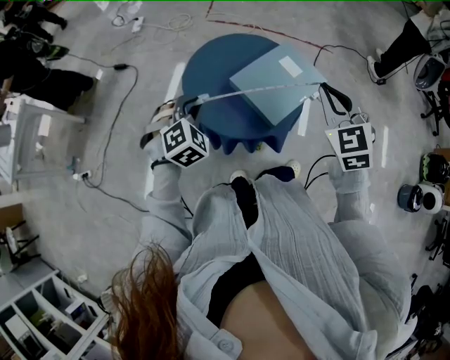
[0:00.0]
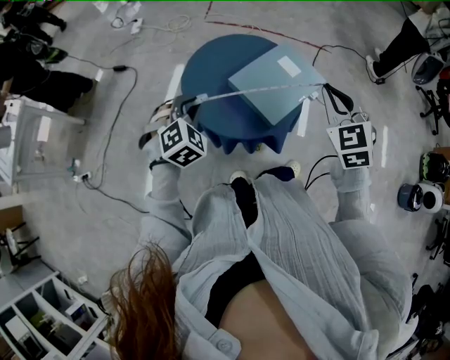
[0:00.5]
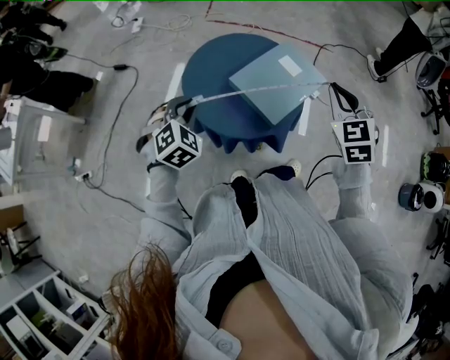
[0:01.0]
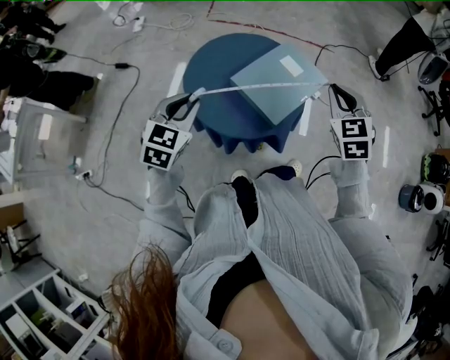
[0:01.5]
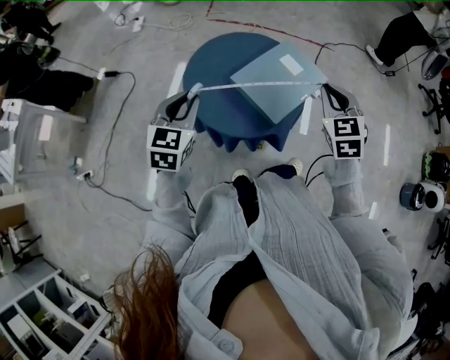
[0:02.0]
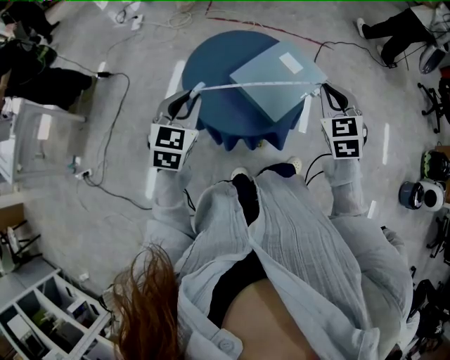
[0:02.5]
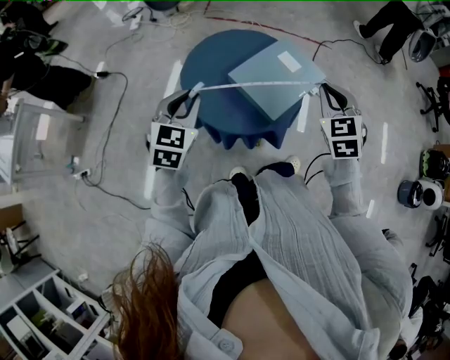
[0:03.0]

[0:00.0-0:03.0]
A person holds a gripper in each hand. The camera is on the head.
0:00.0 to 0:01.5: The right gripper ends up approximately 5 cm from where it was. The left gripper swivels roughly 40 degrees.
0:01.5 to 0:03.0: The grippers move only a little.

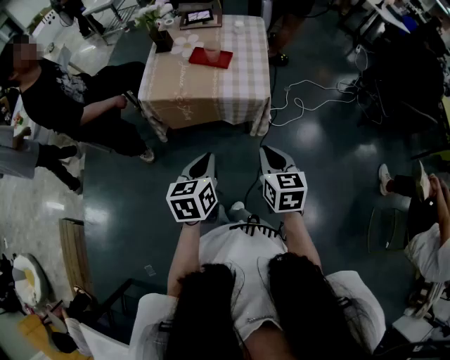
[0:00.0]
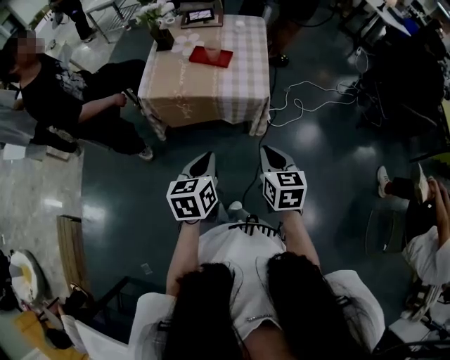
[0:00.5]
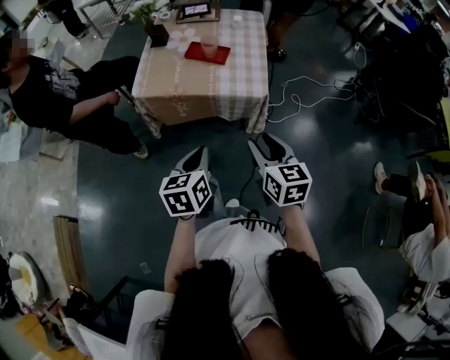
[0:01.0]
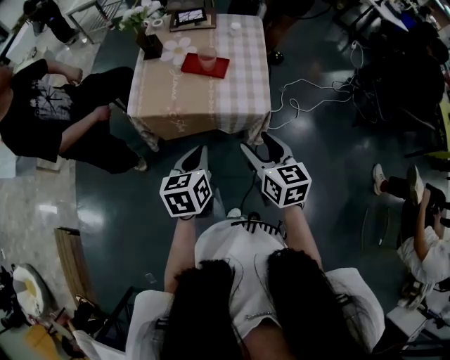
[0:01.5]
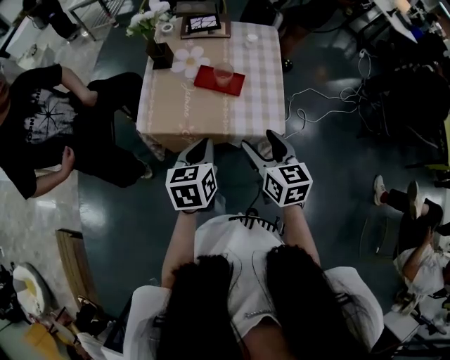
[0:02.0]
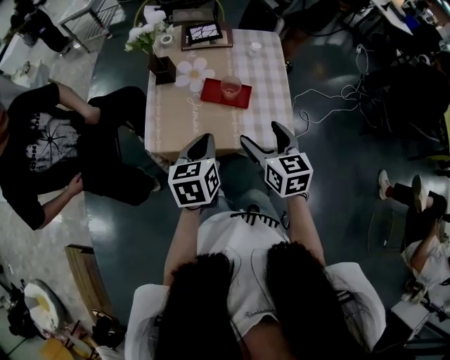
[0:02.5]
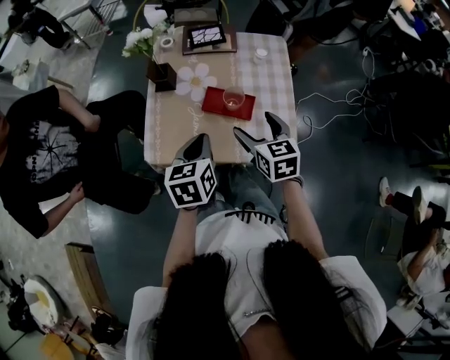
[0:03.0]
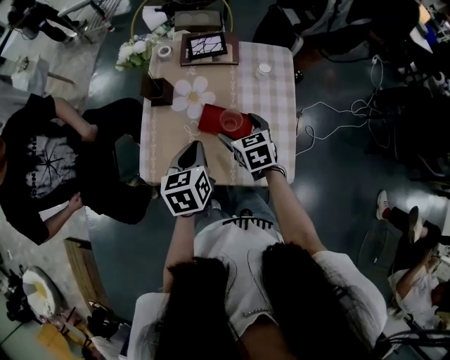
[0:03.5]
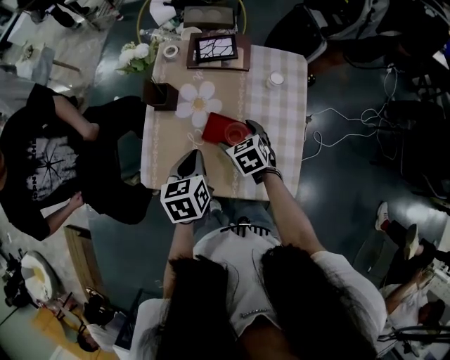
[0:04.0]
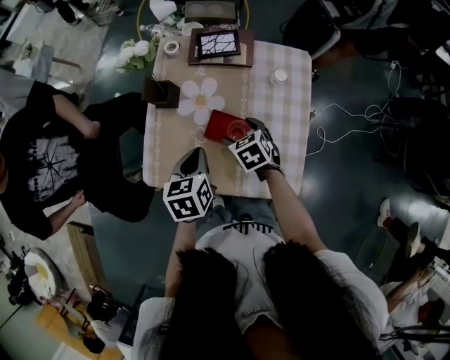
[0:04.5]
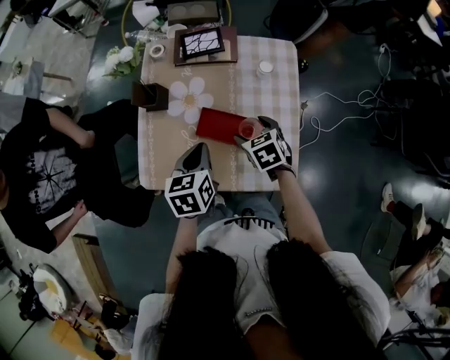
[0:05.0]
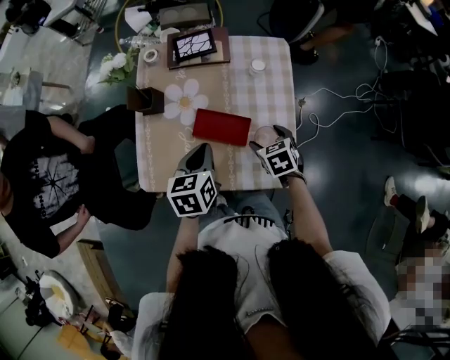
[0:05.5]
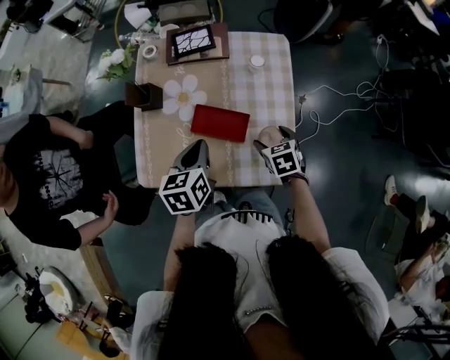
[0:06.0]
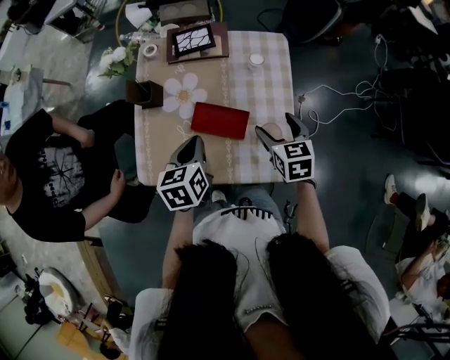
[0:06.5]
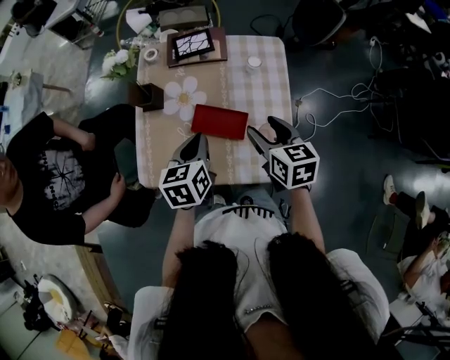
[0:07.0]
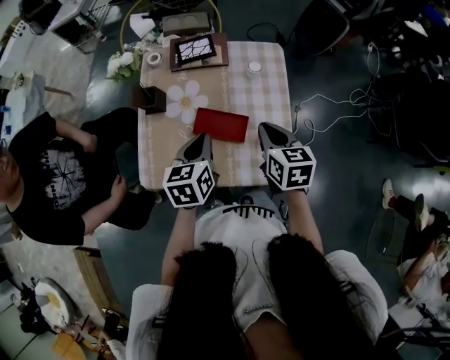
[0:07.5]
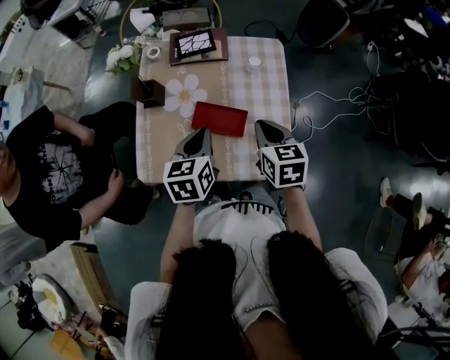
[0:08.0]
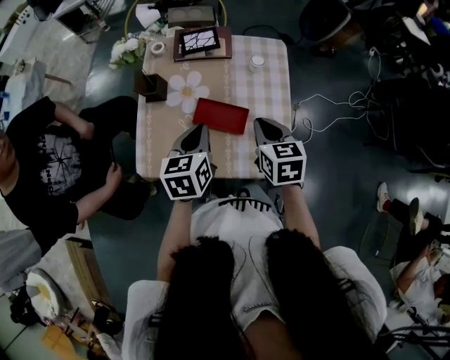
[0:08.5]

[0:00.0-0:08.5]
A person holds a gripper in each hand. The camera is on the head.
0:00.0 to 0:02.0: Both grippers travel together forward, roughly 25 cm. The right gripper opens up.
0:02.0 to 0:04.0: The left gripper travels forward by roughly 25 cm; the right gripper heads forward and downward, covering some 35 cm, and changes its angle by some 40 degrees.
0:04.0 to 0:06.5: The right gripper shifts roughly 15 cm to the right and upward, and changes its angle by roughly 20 degrees.
0:06.5 to 0:08.5: The right gripper is displaced to the left by some 5 cm, and closes its fingers.

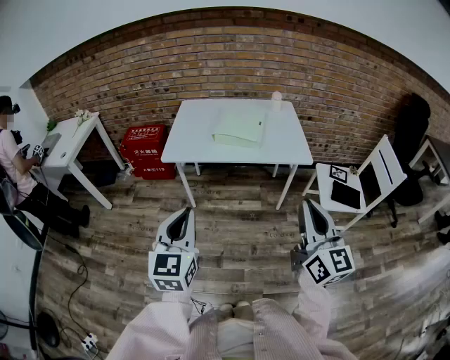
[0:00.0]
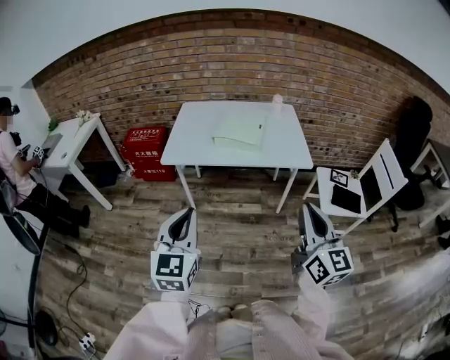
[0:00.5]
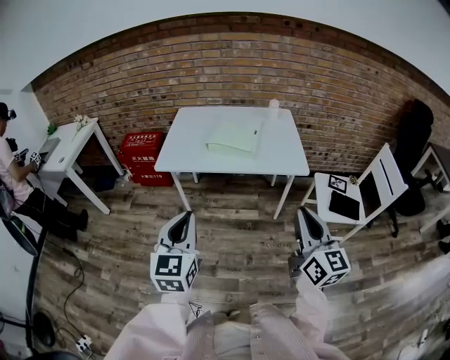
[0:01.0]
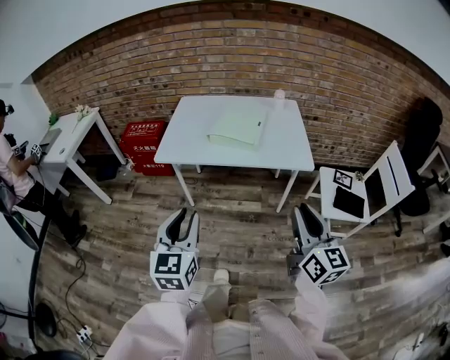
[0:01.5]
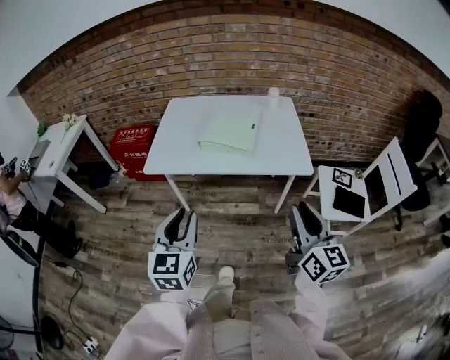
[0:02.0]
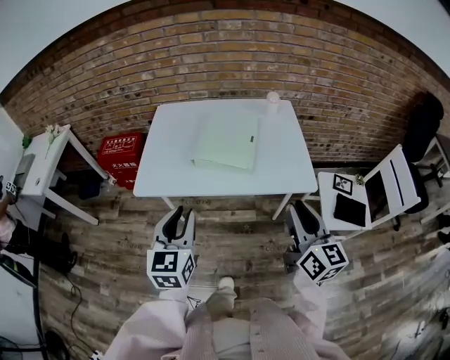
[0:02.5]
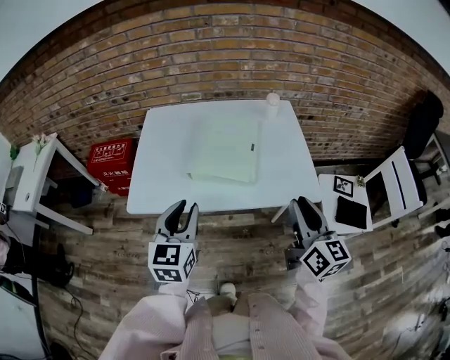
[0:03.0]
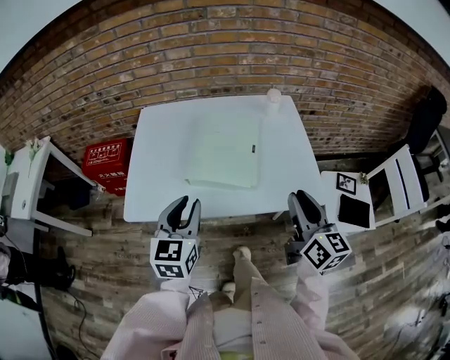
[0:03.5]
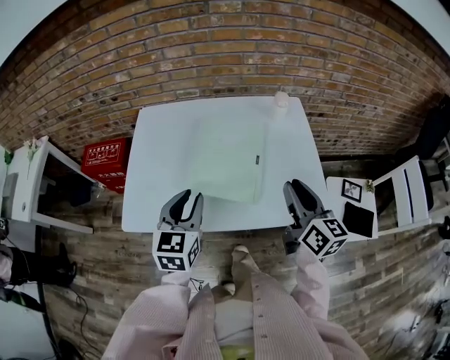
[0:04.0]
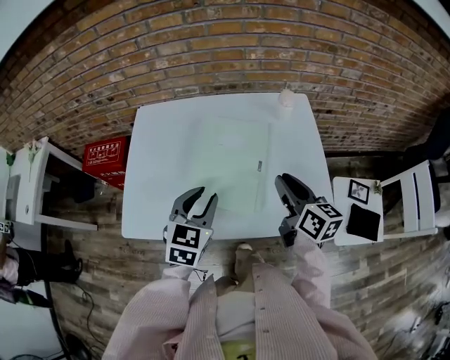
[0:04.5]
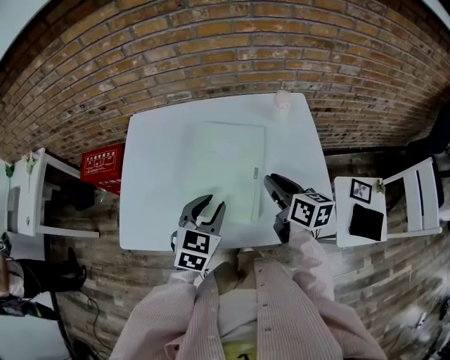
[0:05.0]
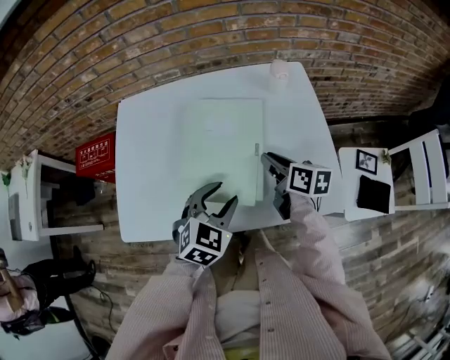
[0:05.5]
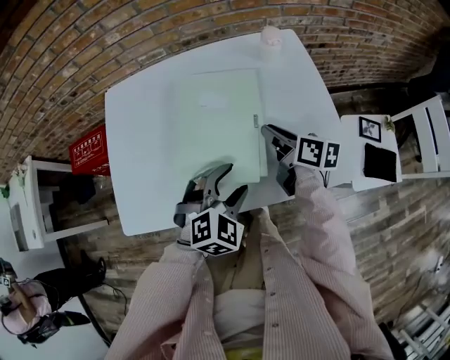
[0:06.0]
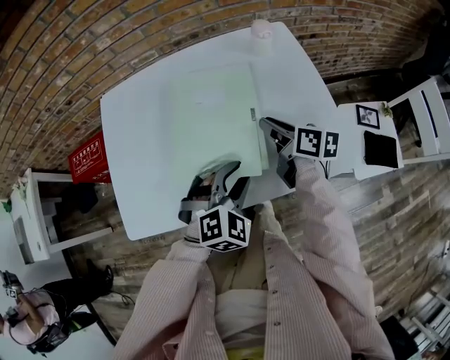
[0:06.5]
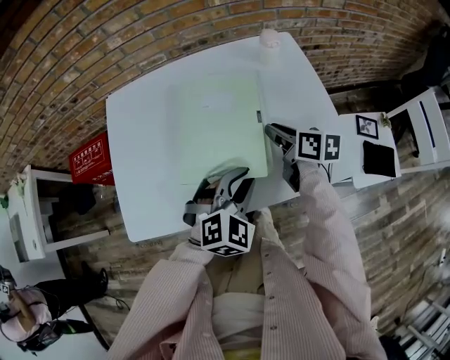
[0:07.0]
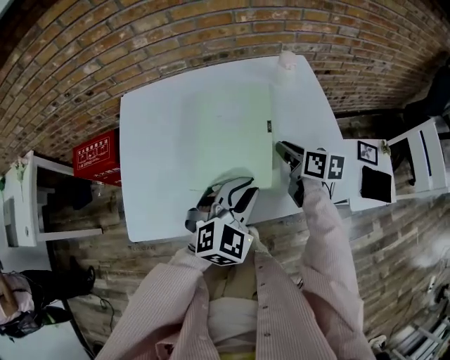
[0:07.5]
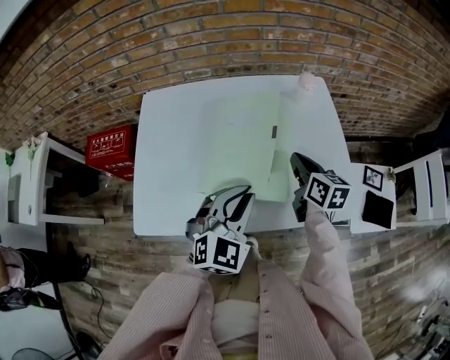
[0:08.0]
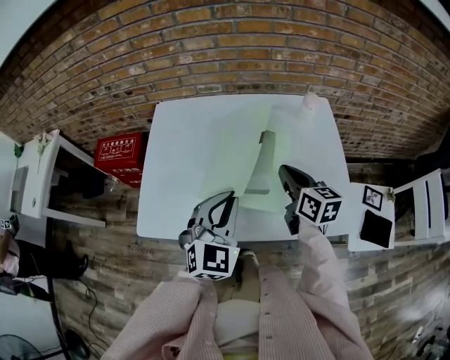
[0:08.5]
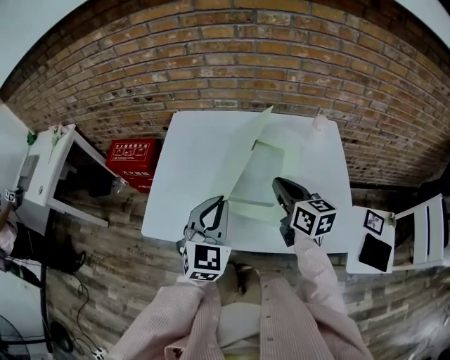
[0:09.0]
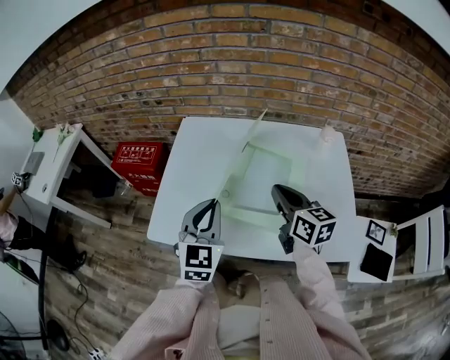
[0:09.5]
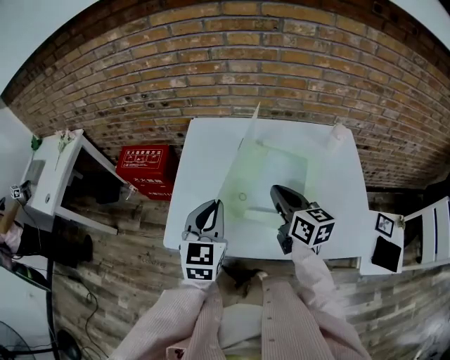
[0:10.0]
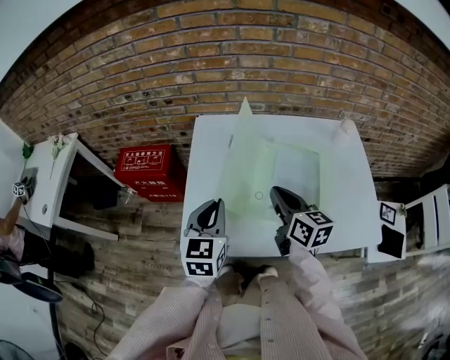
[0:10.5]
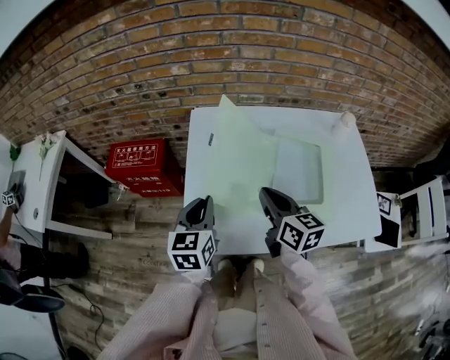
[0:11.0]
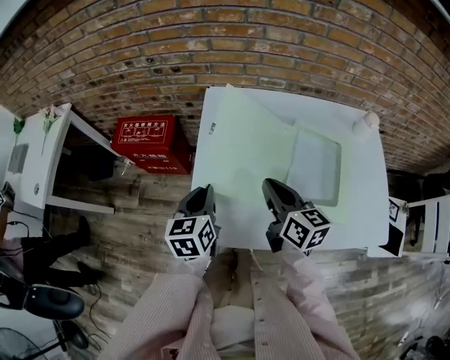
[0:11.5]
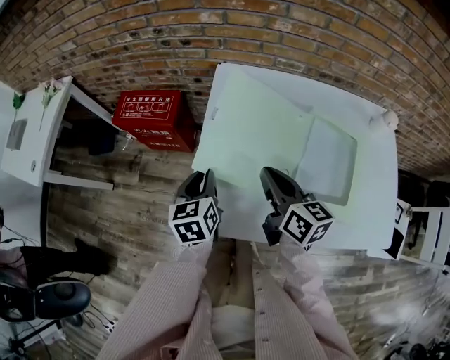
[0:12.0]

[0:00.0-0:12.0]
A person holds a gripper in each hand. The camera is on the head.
0:00.0 to 0:02.0: The left gripper goes some 15 cm forward and to the right, and opens up; the right gripper goes approximately 15 cm forward, downward and to the right.
0:02.0 to 0:04.0: The grippers both shift forward by roughly 35 cm.
0:04.0 to 0:06.0: The left gripper moves to the right and downward, roughly 15 cm, rotates around the line of its fingers by approximately 50 degrees, clockwise from behind, and opens up. Meanwhile the right gripper shifts roughly 20 cm downward and forward, and rotates roughly 30 degrees.
0:06.0 to 0:08.0: The right gripper changes its angle by about 20 degrees, while the left gripper is displaced upward by some 10 cm, rotates some 30 degrees, and closes its fingers.
0:08.0 to 0:10.0: The grippers both shift to the left by approximately 20 cm. The right gripper turns by roughly 20 degrees. The left gripper rotates approximately 40 degrees.
0:10.0 to 0:12.0: The right gripper travels to the left by some 15 cm; the left gripper heads to the left, downward and forward, covering roughly 25 cm, and turns by roughly 30 degrees.

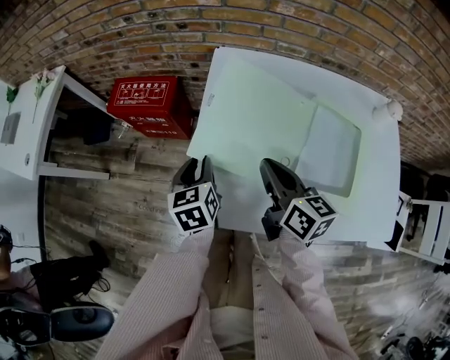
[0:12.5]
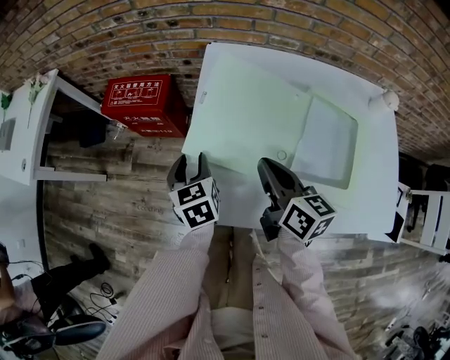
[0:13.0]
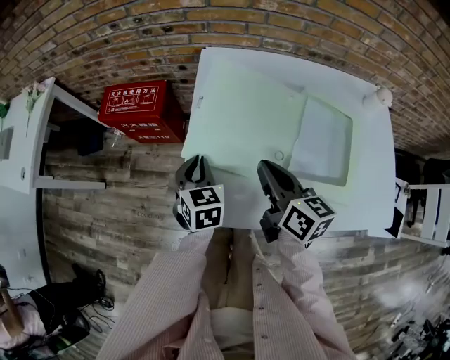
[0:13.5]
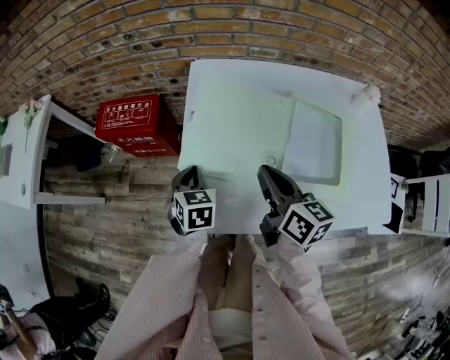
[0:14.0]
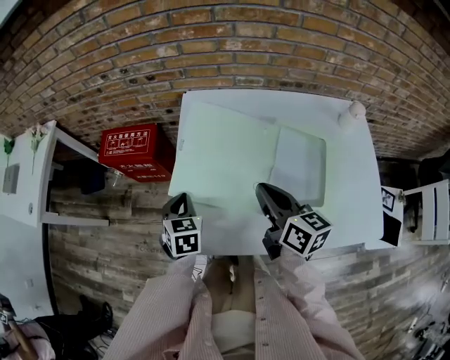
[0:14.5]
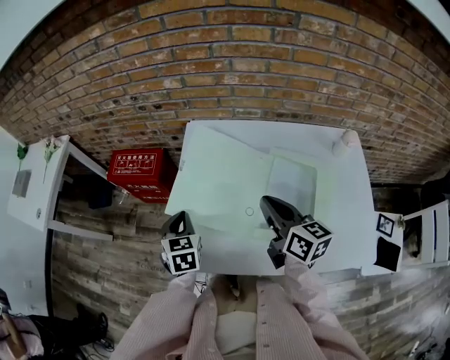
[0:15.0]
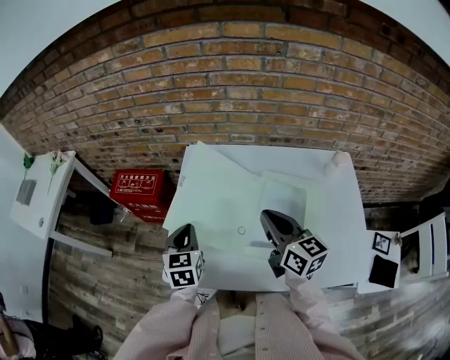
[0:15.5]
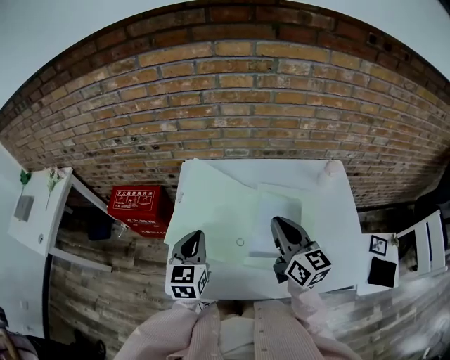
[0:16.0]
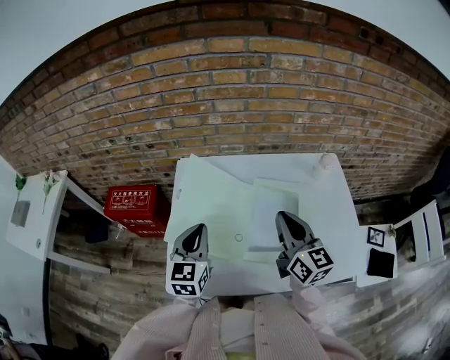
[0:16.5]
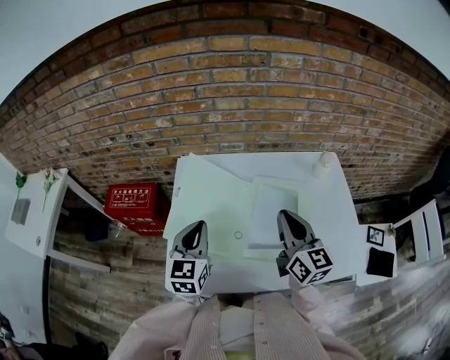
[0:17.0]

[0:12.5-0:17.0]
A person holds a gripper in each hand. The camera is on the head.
0:12.5 to 0:14.5: The left gripper turns by some 30 degrees, and closes its fingers; the right gripper is displaced to the right by some 5 cm.
0:14.5 to 0:17.0: The right gripper moves to the right and upward, about 15 cm, and turns by approximately 30 degrees. The left gripper travels upward and to the right by roughly 20 cm, and rotates roughly 30 degrees.
